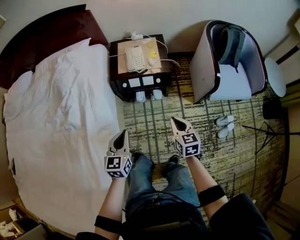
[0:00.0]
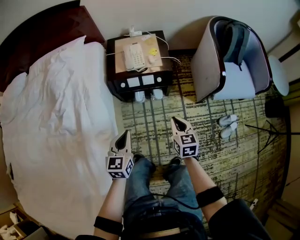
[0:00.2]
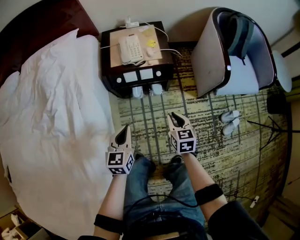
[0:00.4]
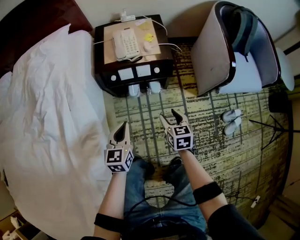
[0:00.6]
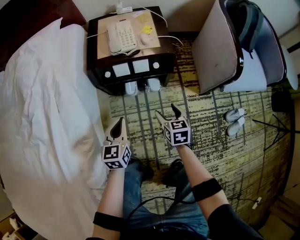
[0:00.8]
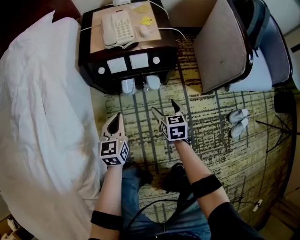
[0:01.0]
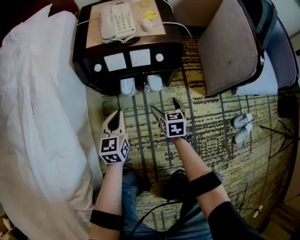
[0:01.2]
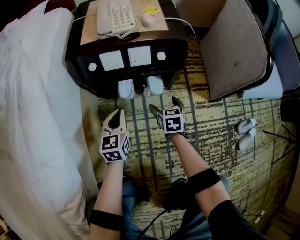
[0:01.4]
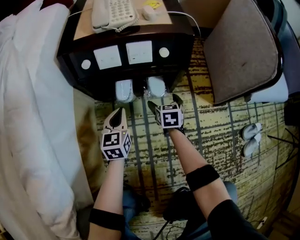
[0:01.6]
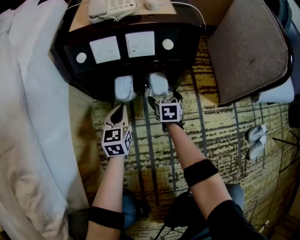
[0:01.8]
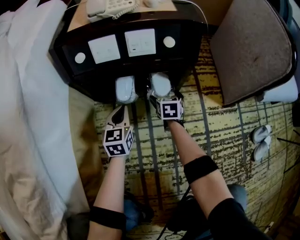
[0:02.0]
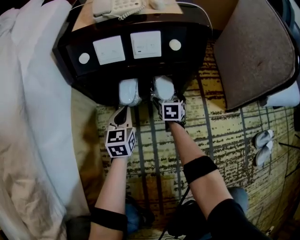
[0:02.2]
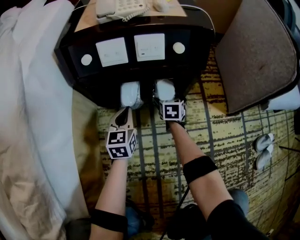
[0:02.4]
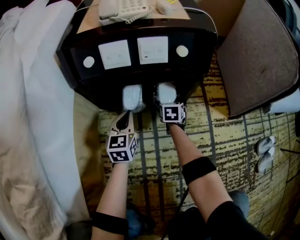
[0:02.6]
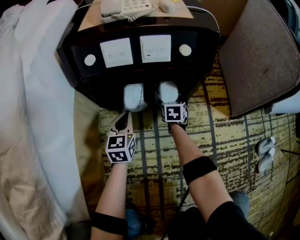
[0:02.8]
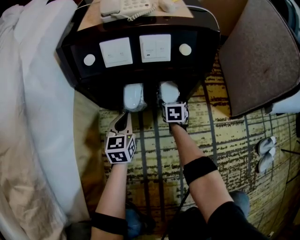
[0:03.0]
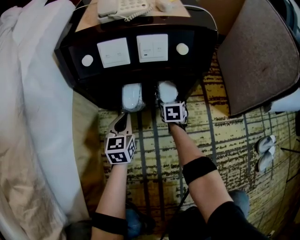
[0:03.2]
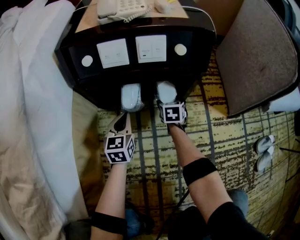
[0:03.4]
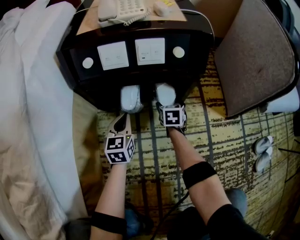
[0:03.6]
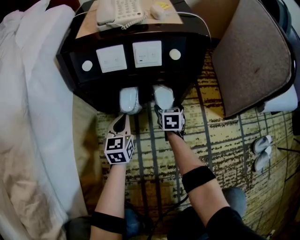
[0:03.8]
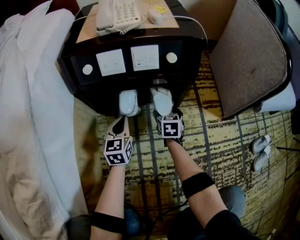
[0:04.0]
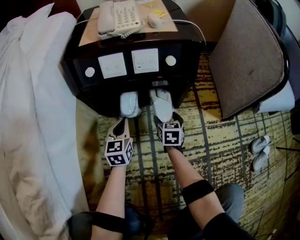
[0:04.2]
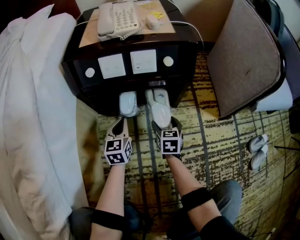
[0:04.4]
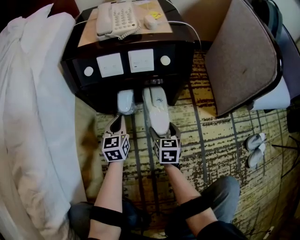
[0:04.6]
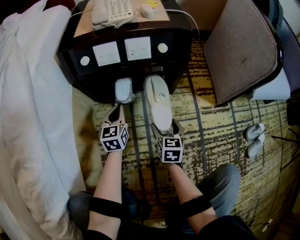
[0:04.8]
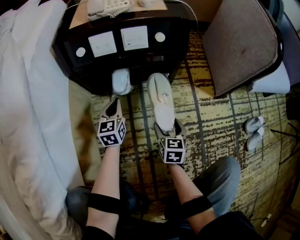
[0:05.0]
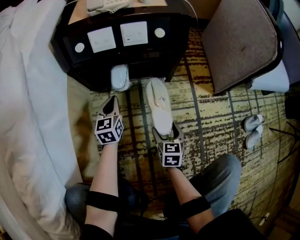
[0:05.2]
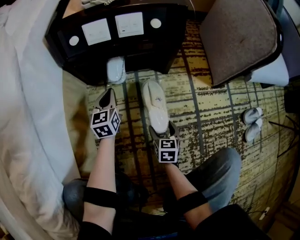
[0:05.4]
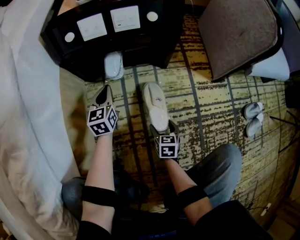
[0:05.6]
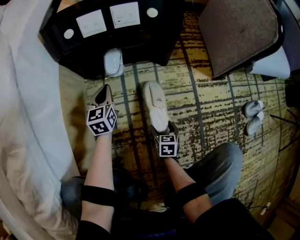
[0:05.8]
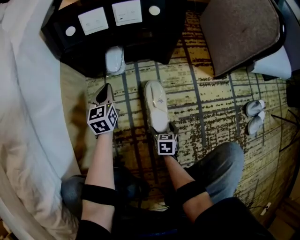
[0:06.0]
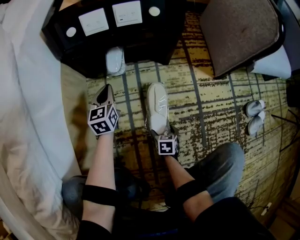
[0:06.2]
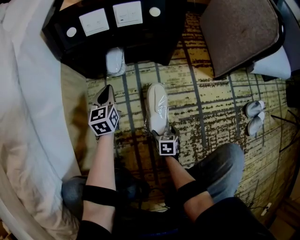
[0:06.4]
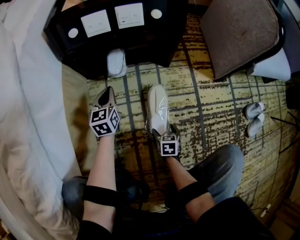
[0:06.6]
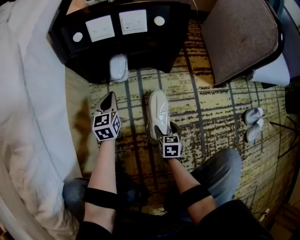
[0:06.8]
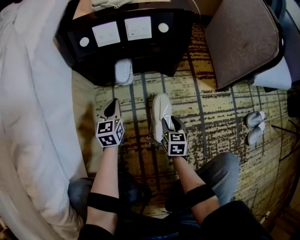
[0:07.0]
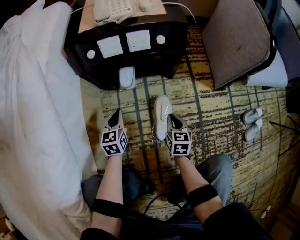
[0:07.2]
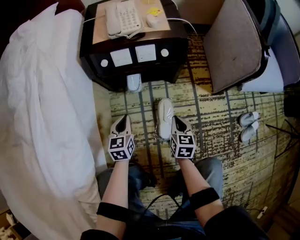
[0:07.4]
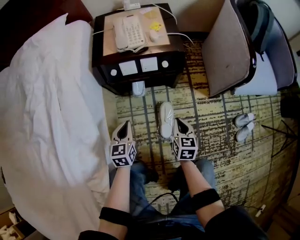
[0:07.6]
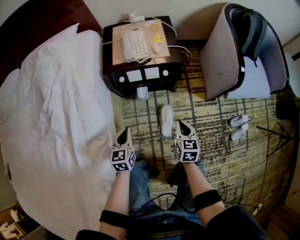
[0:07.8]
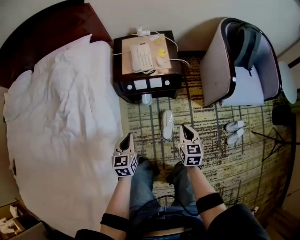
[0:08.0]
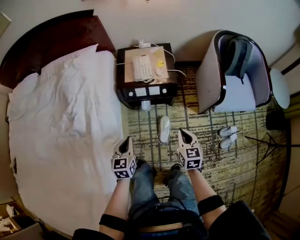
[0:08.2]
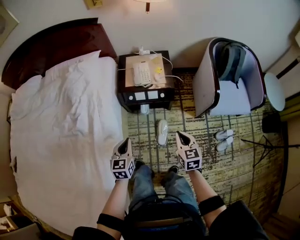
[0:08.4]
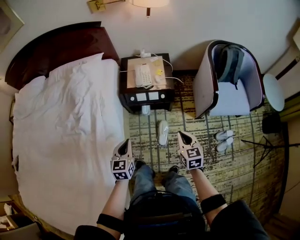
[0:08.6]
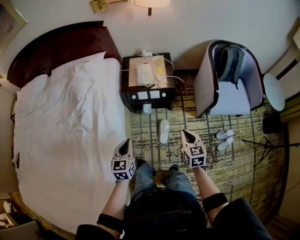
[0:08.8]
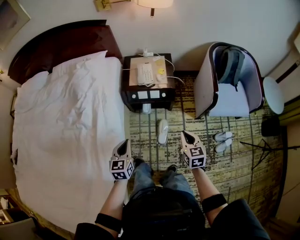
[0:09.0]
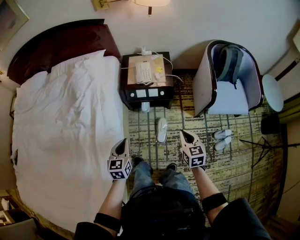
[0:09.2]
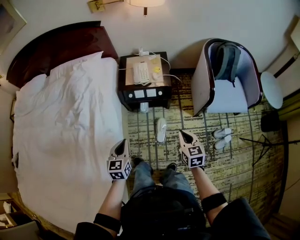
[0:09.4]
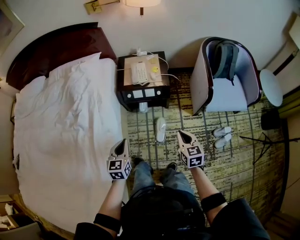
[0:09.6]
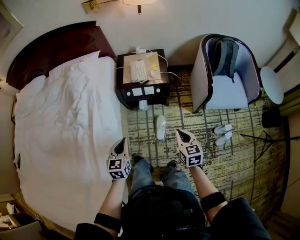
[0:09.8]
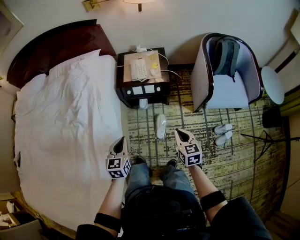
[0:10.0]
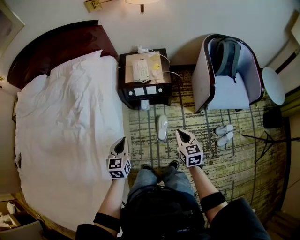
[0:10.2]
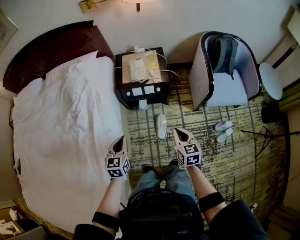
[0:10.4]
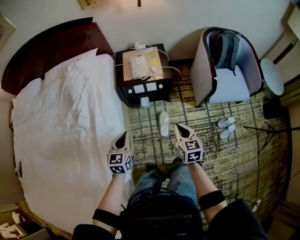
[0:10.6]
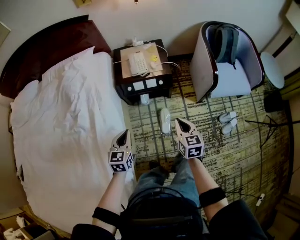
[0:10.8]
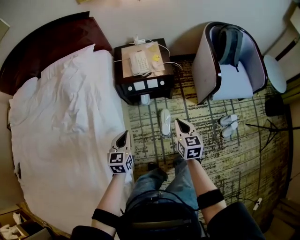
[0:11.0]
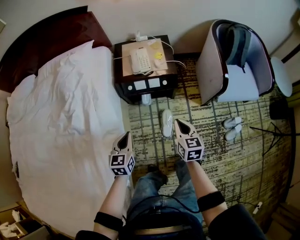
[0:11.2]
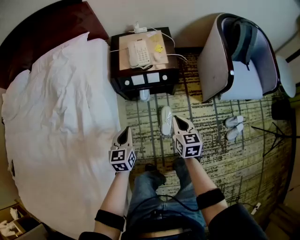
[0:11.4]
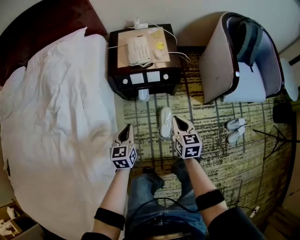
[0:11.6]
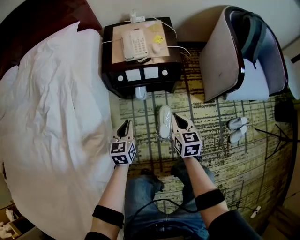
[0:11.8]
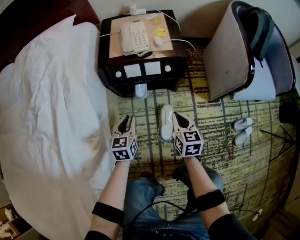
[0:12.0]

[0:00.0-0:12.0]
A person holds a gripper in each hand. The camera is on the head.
0:00.0 to 0:01.6: Both grippers move downward and forward, about 60 cm. The right gripper opens up.
0:01.6 to 0:03.0: The left gripper moves downward, roughly 10 cm. The right gripper shifts approximately 15 cm downward and forward.
0:03.0 to 0:04.4: The right gripper is displaced backward and upward by approximately 15 cm.
0:04.4 to 0:06.0: The right gripper goes about 25 cm backward and downward.
0:06.0 to 0:07.6: The right gripper is displaced upward by about 40 cm, and closes its fingers. The left gripper goes roughly 30 cm upward and backward.
0:07.6 to 0:09.0: The grippers both shift upward by some 40 cm.
0:09.0 to 0:10.4: The grippers make only small movements.
0:10.4 to 0:12.0: Both grippers move downward and forward, some 40 cm.

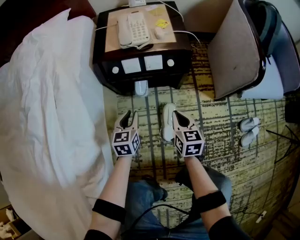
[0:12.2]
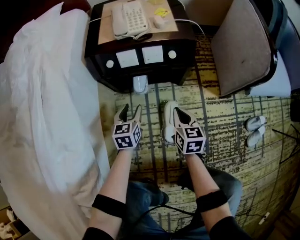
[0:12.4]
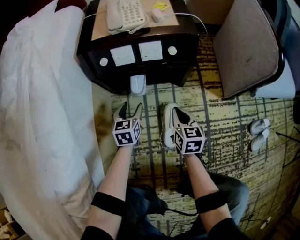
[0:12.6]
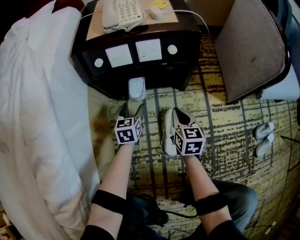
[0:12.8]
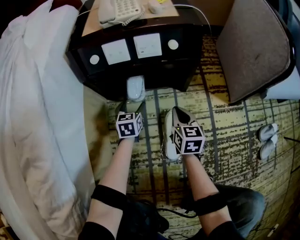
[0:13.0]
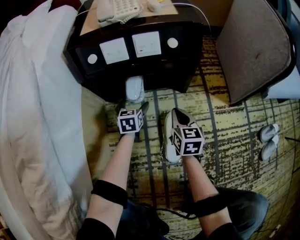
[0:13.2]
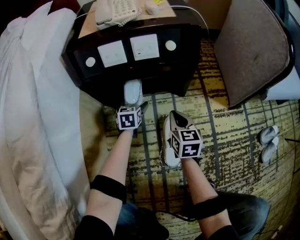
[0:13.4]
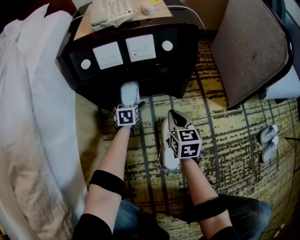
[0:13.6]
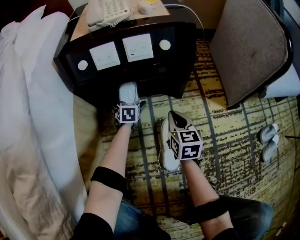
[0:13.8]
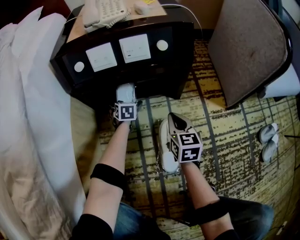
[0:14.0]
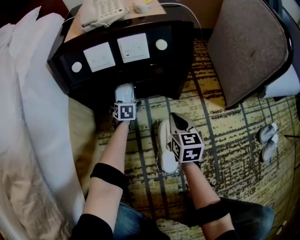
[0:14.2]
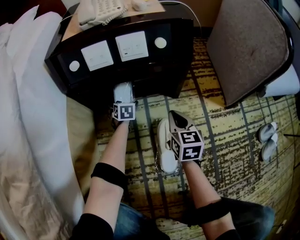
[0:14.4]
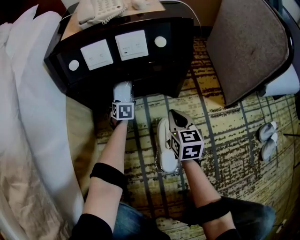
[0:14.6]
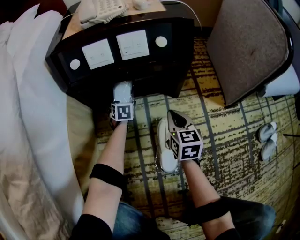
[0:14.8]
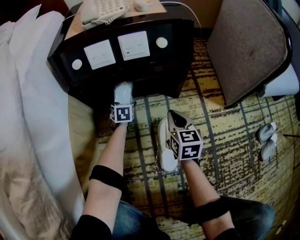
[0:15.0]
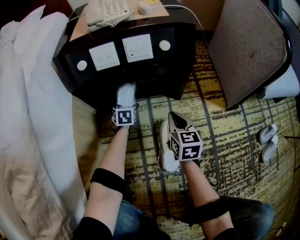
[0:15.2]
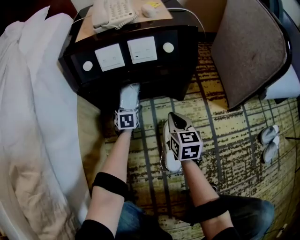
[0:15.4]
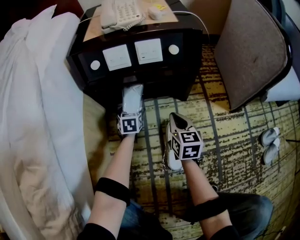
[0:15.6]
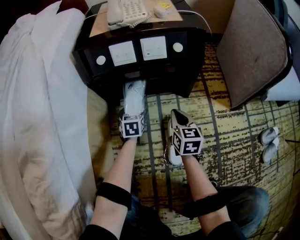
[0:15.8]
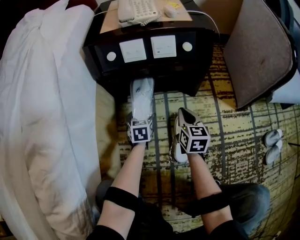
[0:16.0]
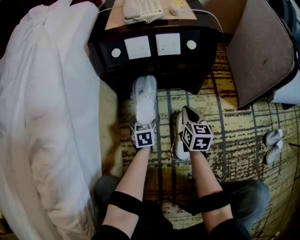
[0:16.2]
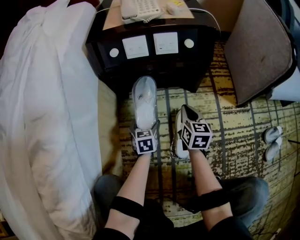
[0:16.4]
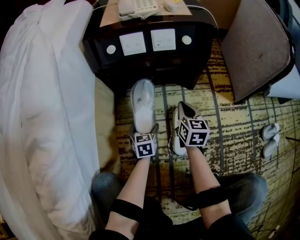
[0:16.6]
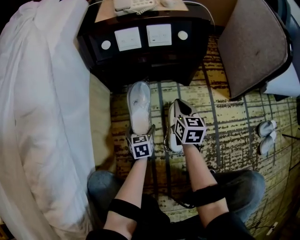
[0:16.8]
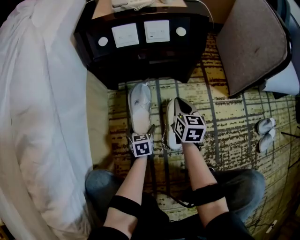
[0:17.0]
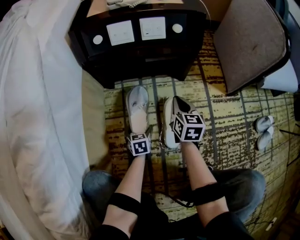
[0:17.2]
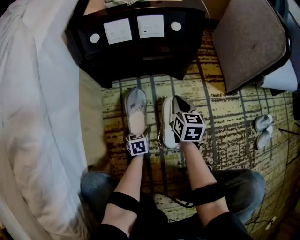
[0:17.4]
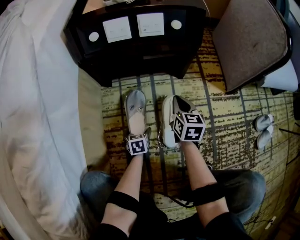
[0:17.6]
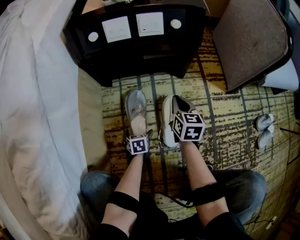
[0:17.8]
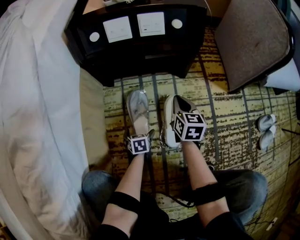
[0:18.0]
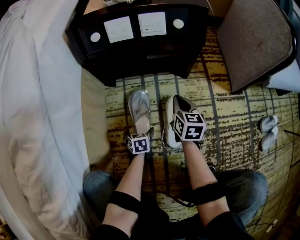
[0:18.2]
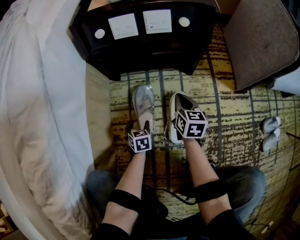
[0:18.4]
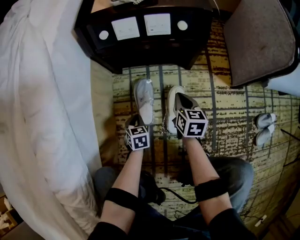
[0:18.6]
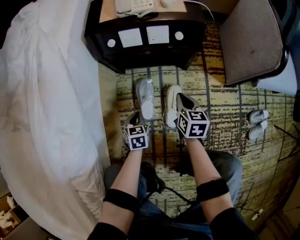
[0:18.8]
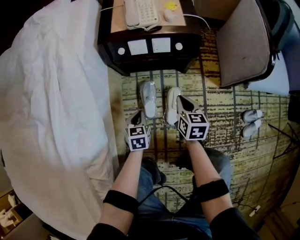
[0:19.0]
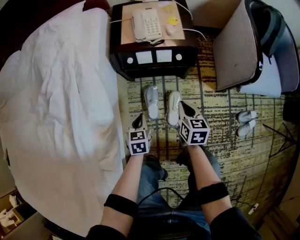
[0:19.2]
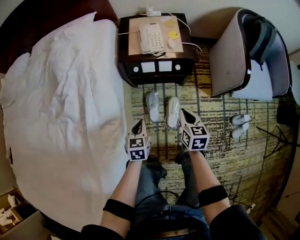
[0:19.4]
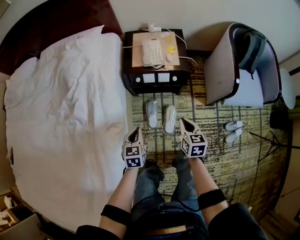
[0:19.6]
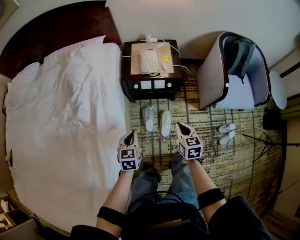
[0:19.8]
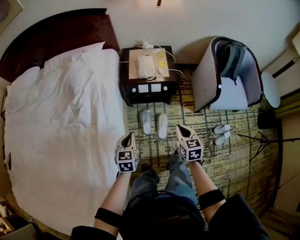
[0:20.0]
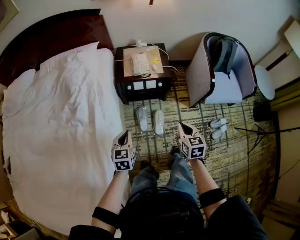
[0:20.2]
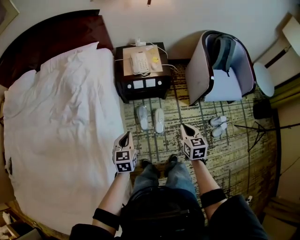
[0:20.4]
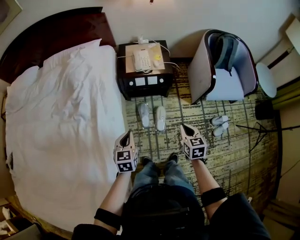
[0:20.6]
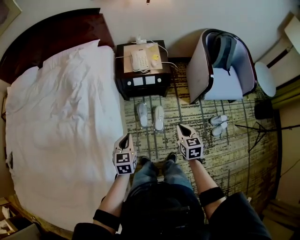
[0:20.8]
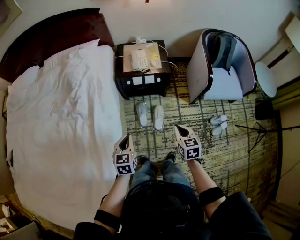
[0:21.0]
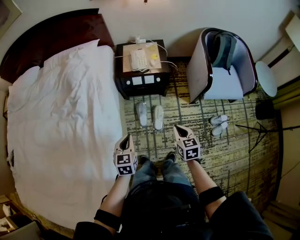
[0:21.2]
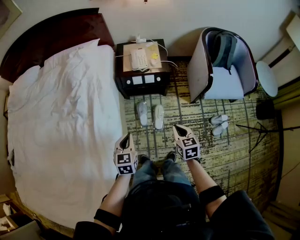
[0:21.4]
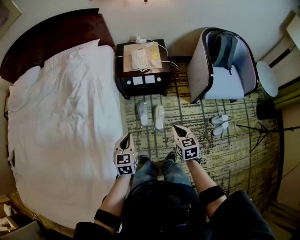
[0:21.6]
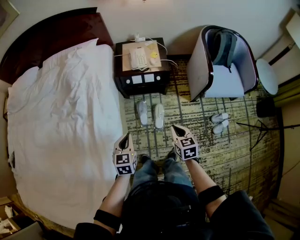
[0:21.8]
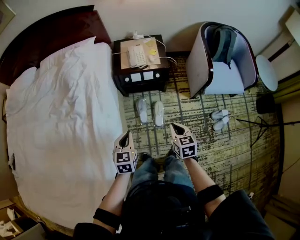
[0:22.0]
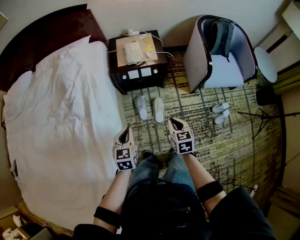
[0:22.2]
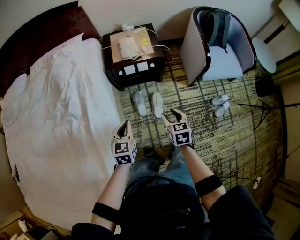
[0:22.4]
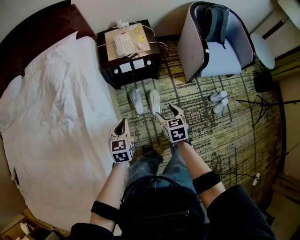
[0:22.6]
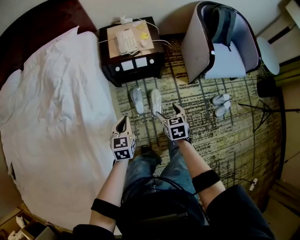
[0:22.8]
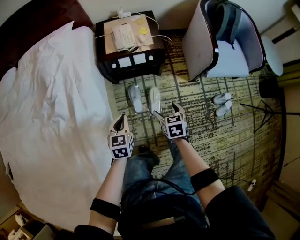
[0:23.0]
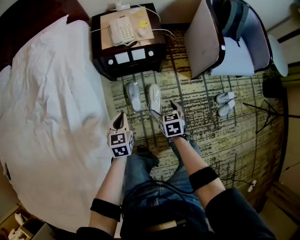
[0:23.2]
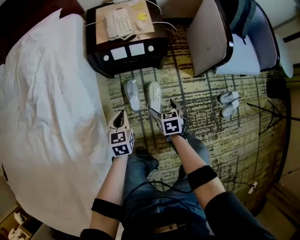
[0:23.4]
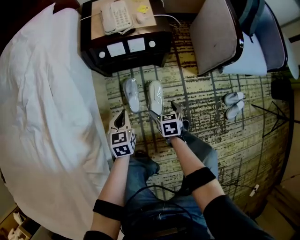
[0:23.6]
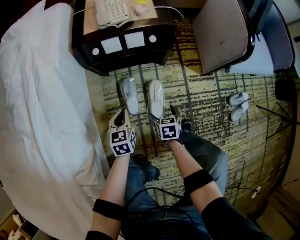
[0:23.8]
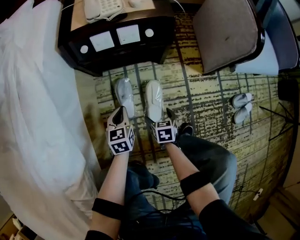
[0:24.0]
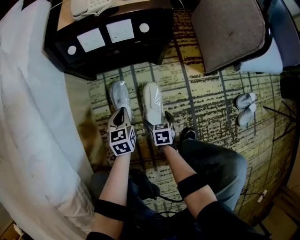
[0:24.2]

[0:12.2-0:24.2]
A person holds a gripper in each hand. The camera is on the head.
0:12.2 to 0:13.8: The left gripper heads downward and forward, covering roughly 40 cm, and opens up. Meanwhile the right gripper travels downward by about 25 cm.
0:13.8 to 0:15.2: The grippers move only a little.
0:15.2 to 0:16.6: The left gripper goes roughly 20 cm backward.
0:16.6 to 0:18.2: The left gripper goes some 15 cm downward and backward.
0:18.2 to 0:19.8: Both grippers move upward, approximately 70 cm. The left gripper closes its fingers.
0:19.8 to 0:21.2: Both grippers move backward and upward, about 15 cm.
0:21.2 to 0:22.6: The left gripper is displaced forward and downward by about 10 cm. Meanwhile the right gripper heads downward and forward, covering about 10 cm, and opens up.
0:22.6 to 0:24.2: Both grippers travel together downward, approximately 60 cm. The right gripper opens up.
